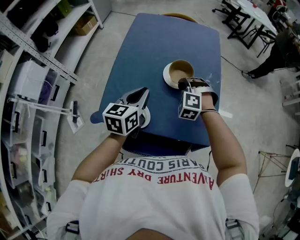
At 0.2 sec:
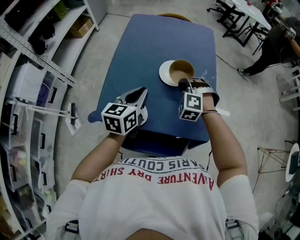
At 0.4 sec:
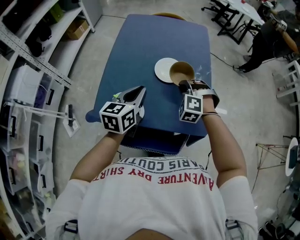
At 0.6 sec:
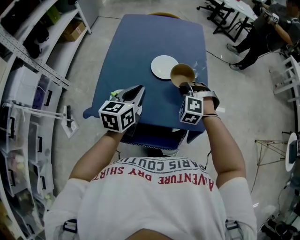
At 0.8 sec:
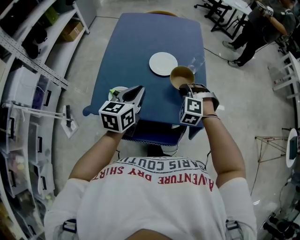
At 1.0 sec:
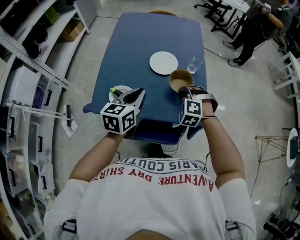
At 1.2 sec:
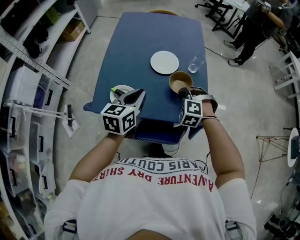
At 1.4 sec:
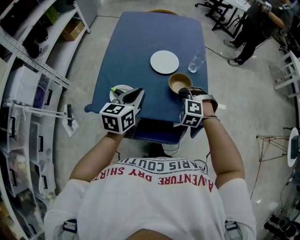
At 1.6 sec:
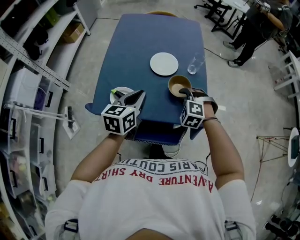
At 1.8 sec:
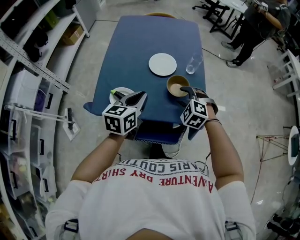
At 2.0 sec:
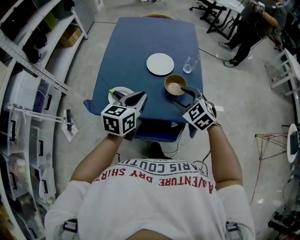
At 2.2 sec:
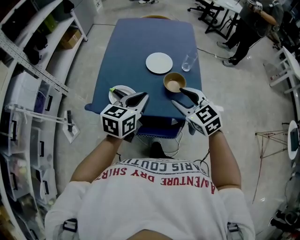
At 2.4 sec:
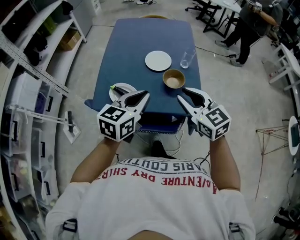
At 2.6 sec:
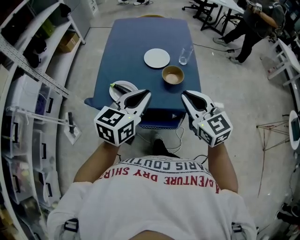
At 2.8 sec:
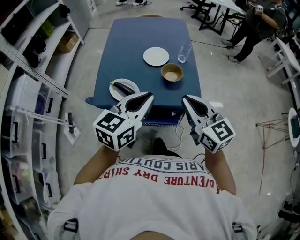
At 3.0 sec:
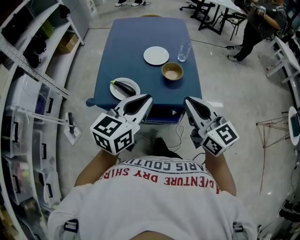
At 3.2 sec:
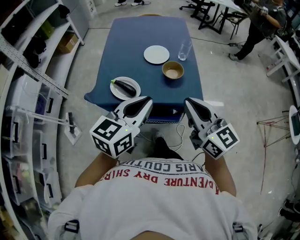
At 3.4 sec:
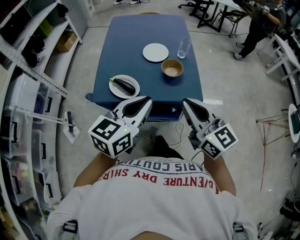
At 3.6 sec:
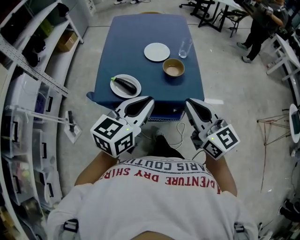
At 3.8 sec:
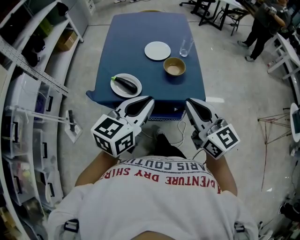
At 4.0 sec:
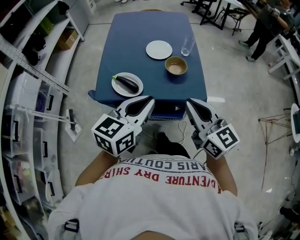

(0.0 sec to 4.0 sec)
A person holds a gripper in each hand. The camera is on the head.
0.0 sec - 1.4 sec: The right gripper moves backward and to the right, some 15 cm. The left gripper travels backward by roughly 5 cm.
1.4 sec - 2.6 sec: The left gripper moves backward and upward, some 15 cm; the right gripper goes roughly 25 cm upward and backward, angles its fingers upward, by roughly 40 degrees, and opens, then closes again.
2.6 sec - 4.0 sec: The grippers both shift backward by some 5 cm.

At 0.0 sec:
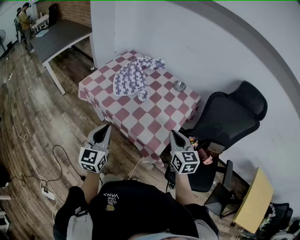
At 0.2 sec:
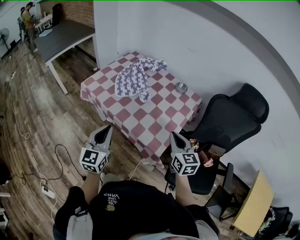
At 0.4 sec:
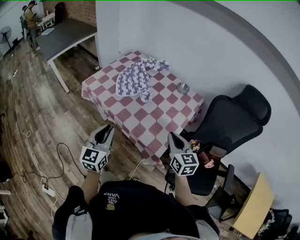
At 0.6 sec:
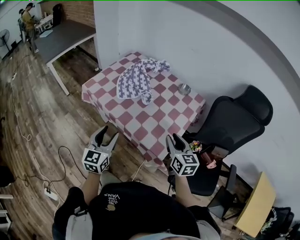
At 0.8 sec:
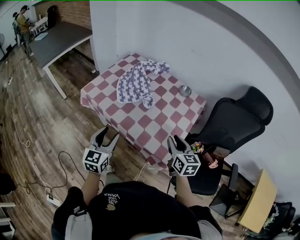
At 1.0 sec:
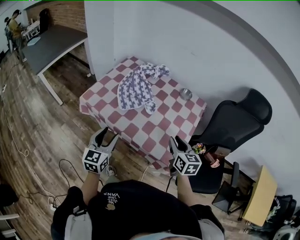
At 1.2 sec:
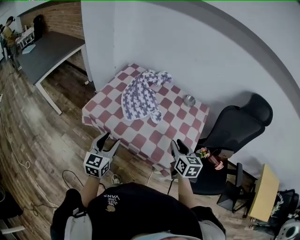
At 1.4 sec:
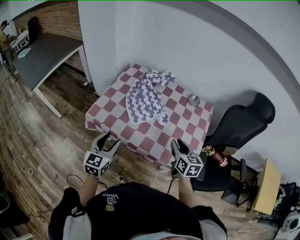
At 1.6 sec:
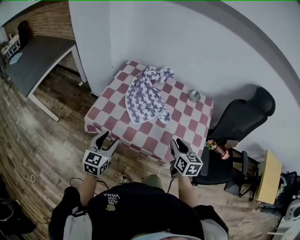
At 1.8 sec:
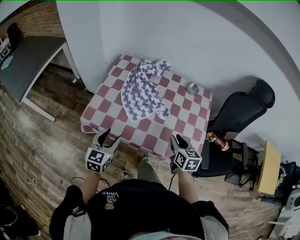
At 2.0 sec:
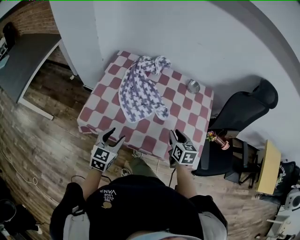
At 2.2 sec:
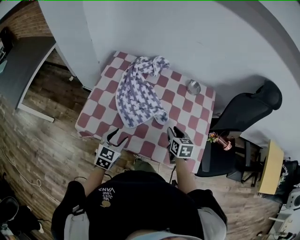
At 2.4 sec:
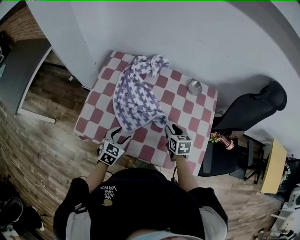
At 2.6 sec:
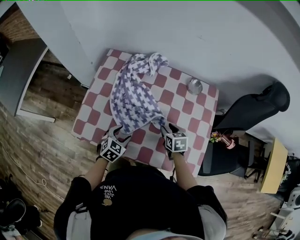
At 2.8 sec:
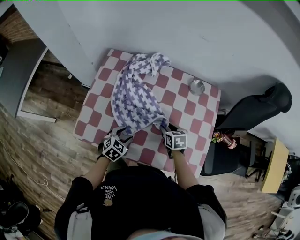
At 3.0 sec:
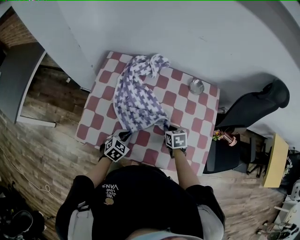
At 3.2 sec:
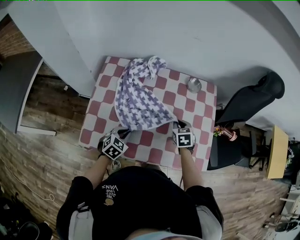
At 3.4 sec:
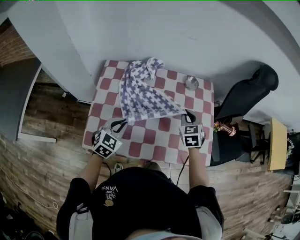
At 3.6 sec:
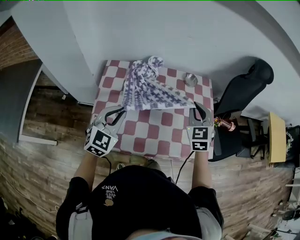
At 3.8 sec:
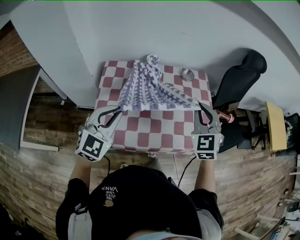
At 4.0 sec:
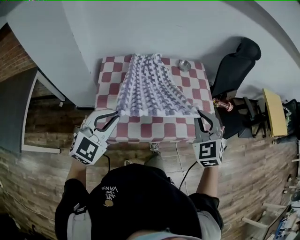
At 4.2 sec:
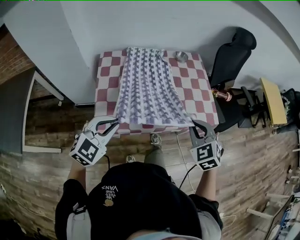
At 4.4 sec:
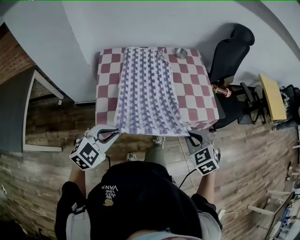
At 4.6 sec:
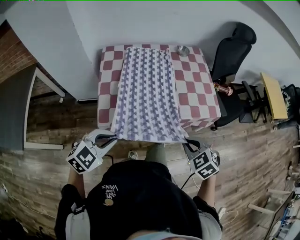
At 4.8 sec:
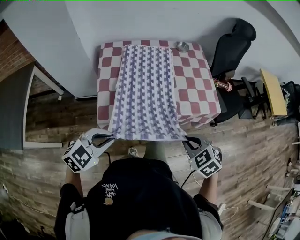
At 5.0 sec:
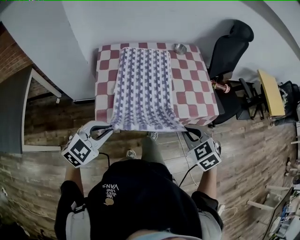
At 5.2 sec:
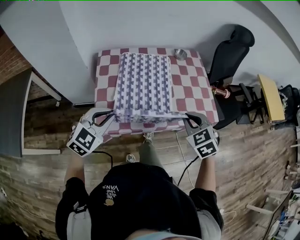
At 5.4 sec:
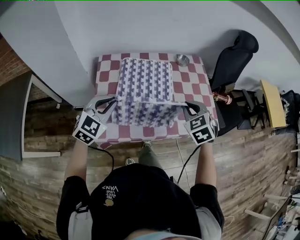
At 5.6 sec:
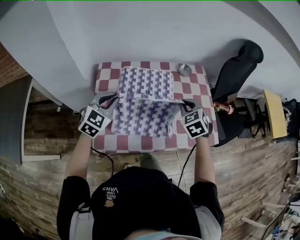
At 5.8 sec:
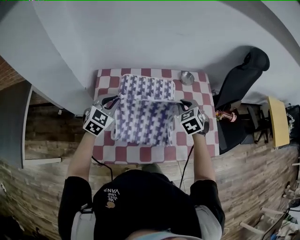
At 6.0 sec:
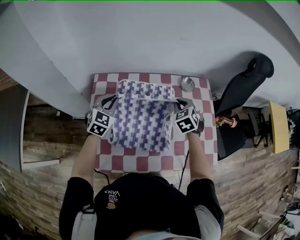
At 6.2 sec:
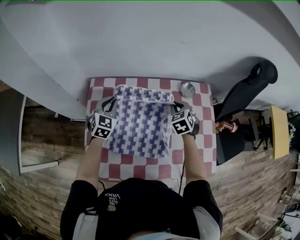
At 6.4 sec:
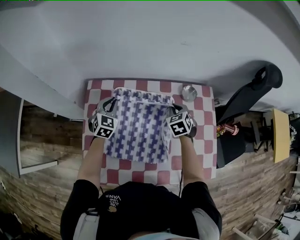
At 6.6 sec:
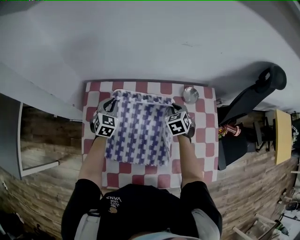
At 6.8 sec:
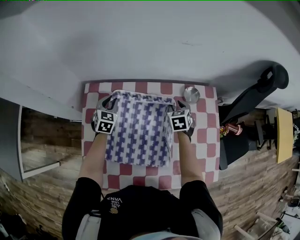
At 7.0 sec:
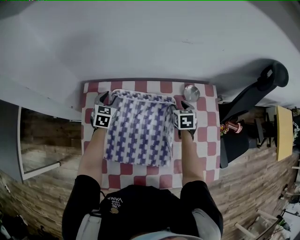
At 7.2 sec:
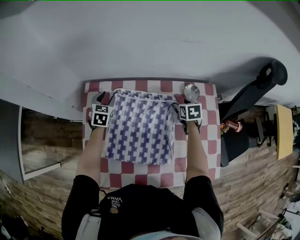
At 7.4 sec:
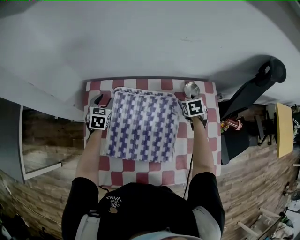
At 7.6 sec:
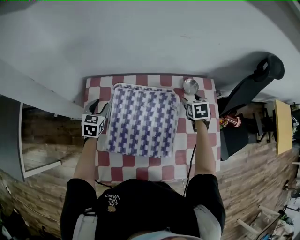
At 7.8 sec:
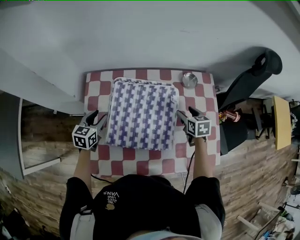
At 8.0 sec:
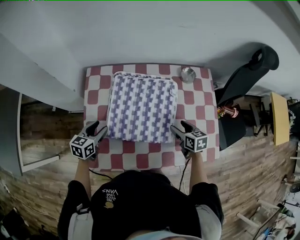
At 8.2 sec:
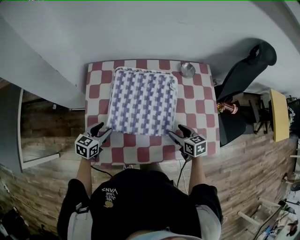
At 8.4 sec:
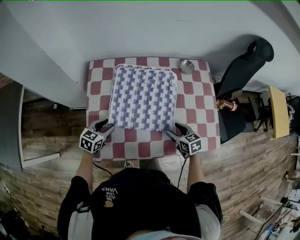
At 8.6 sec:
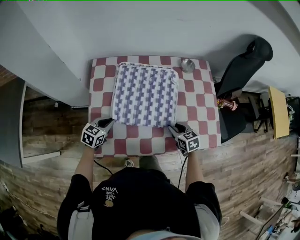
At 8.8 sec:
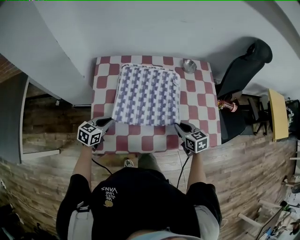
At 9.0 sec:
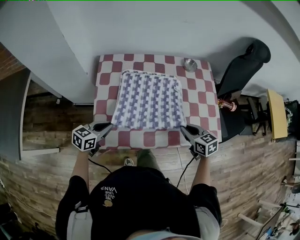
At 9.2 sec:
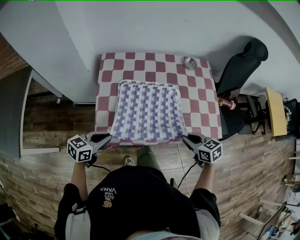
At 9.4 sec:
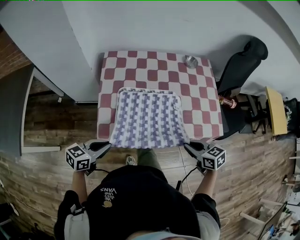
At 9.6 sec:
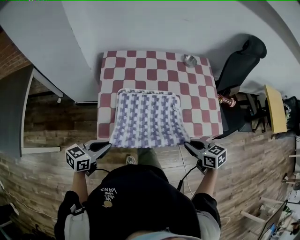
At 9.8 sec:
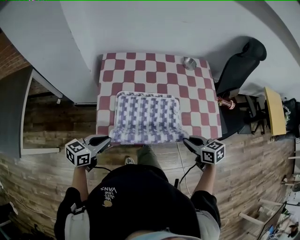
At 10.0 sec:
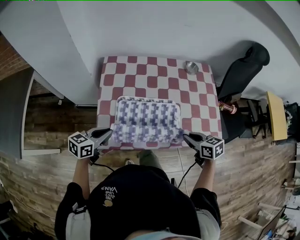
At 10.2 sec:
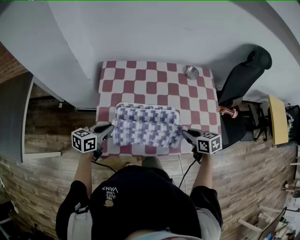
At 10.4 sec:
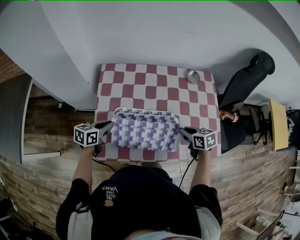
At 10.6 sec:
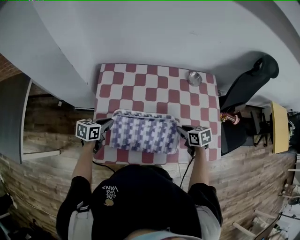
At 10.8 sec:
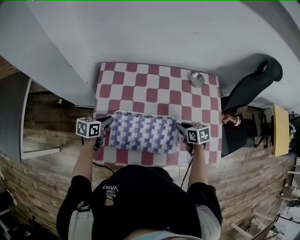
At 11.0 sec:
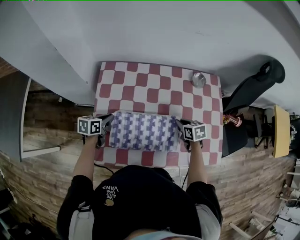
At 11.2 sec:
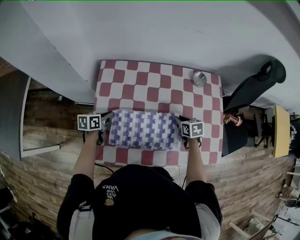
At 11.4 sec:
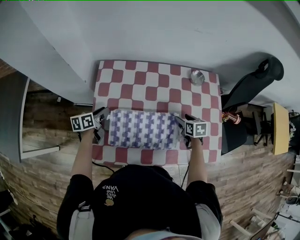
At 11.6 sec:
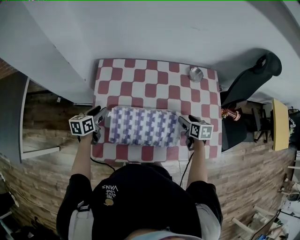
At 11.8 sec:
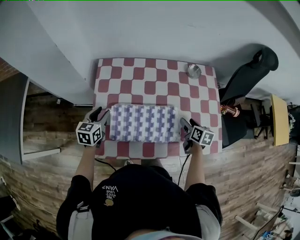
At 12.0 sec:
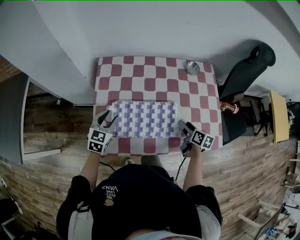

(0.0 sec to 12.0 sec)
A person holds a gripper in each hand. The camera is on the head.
0.0 sec - 1.6 sec: The right gripper moves to the left and forward, roughly 20 cm, swivels about 30 degrees, and opens. Meanwhile the left gripper shifts roughly 25 cm forward and to the left, rotates approximately 30 degrees, and opens its fingers.
1.6 sec - 3.0 sec: The left gripper is displaced downward, forward and to the right by roughly 25 cm, points its fingers approximately 30 degrees further downward, and closes up. The right gripper moves downward and forward, about 25 cm, and rotates some 30 degrees.
3.0 sec - 4.4 sec: The right gripper changes place by roughly 40 cm, and changes its angle by some 30 degrees, while the left gripper moves about 30 cm, and turns by approximately 40 degrees.
4.4 sec - 6.0 sec: Both grippers are carried forward, roughly 40 cm. The left gripper rotates roughly 30 degrees.
6.0 sec - 7.6 sec: The right gripper goes some 15 cm forward, to the right and downward, changes its angle by roughly 30 degrees, and opens its fingers; the left gripper heads downward and to the left, covering roughly 10 cm, travels forward and back again, roughly 15 cm each way, swivels roughly 30 degrees, and opens up.
7.6 sec - 9.0 sec: Both grippers move backward, about 30 cm. The left gripper turns by approximately 30 degrees, and closes up. The right gripper changes its angle by some 30 degrees, and closes its fingers.
9.0 sec - 10.4 sec: Both grippers move forward, roughly 5 cm.
10.4 sec - 12.0 sec: The right gripper moves about 10 cm forward and comes back, changes its angle by approximately 40 degrees, and opens up, while the left gripper moves about 10 cm forward and comes back, rotates about 30 degrees, and opens up.

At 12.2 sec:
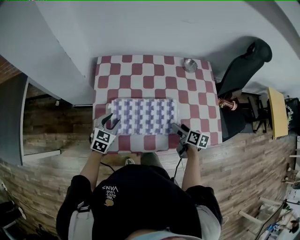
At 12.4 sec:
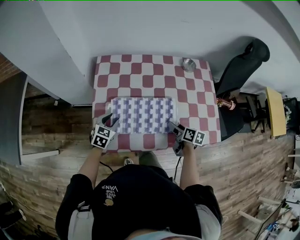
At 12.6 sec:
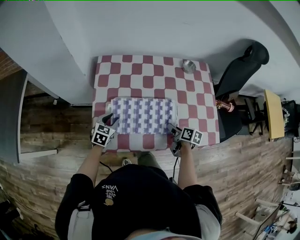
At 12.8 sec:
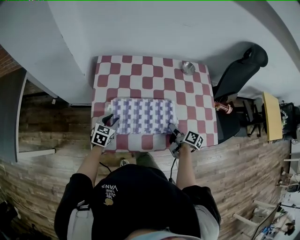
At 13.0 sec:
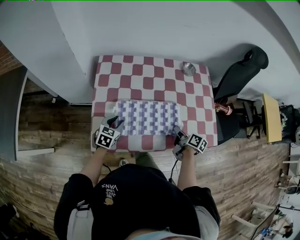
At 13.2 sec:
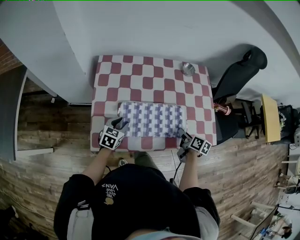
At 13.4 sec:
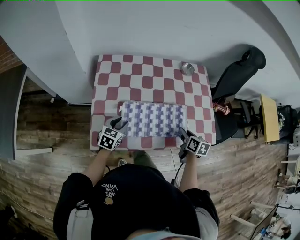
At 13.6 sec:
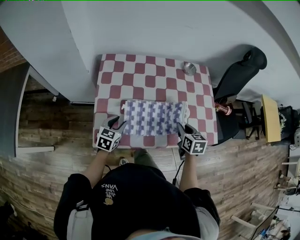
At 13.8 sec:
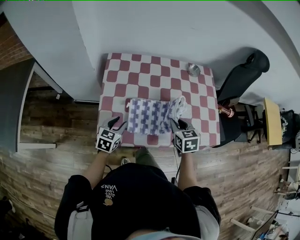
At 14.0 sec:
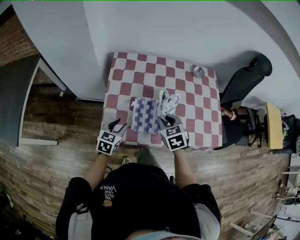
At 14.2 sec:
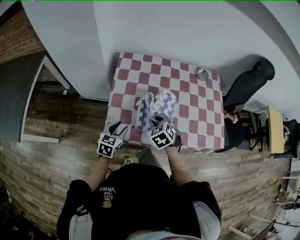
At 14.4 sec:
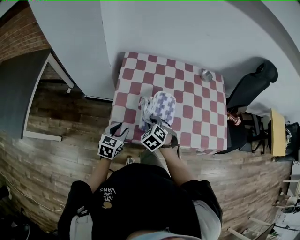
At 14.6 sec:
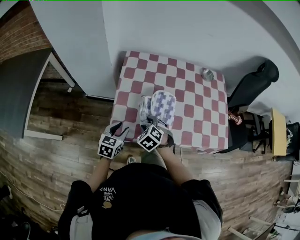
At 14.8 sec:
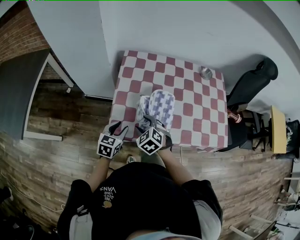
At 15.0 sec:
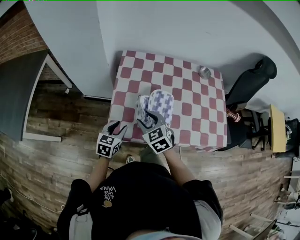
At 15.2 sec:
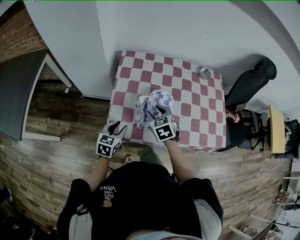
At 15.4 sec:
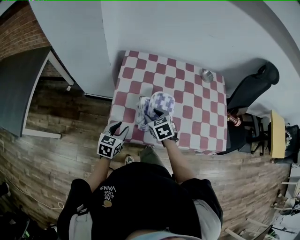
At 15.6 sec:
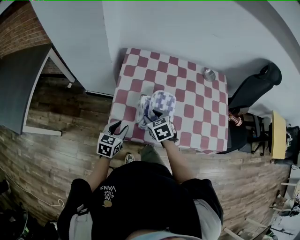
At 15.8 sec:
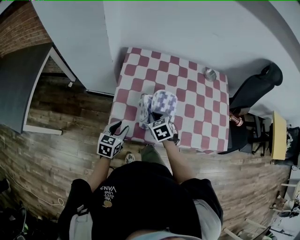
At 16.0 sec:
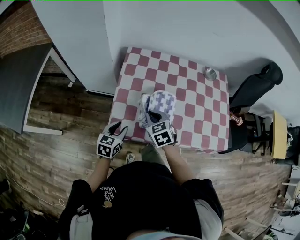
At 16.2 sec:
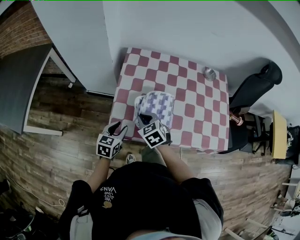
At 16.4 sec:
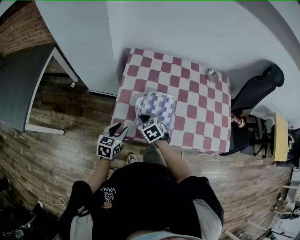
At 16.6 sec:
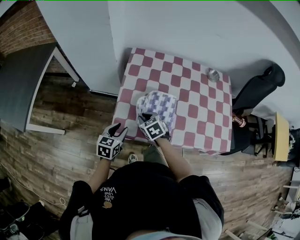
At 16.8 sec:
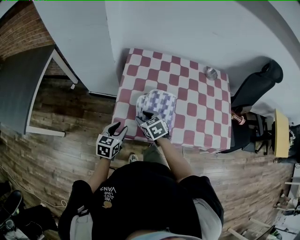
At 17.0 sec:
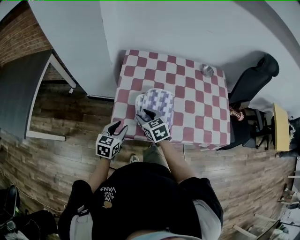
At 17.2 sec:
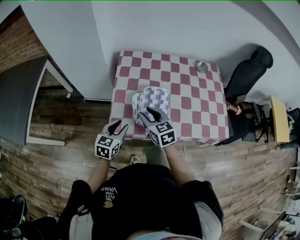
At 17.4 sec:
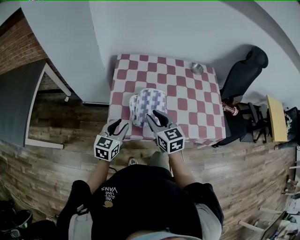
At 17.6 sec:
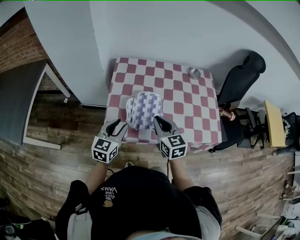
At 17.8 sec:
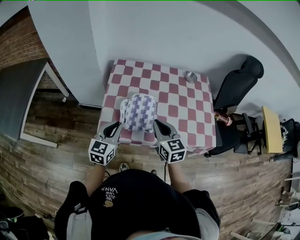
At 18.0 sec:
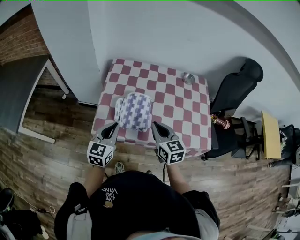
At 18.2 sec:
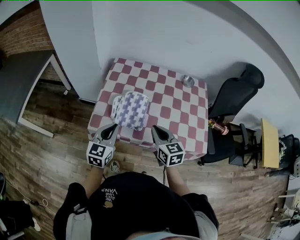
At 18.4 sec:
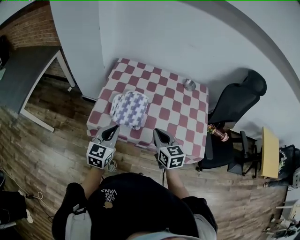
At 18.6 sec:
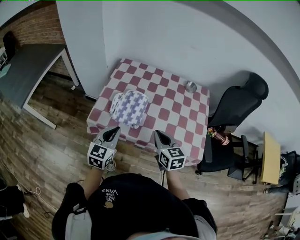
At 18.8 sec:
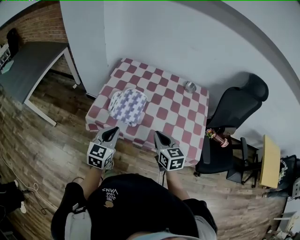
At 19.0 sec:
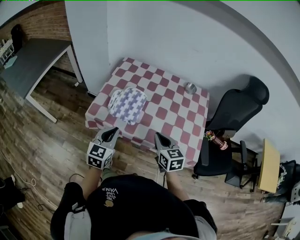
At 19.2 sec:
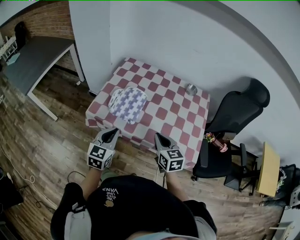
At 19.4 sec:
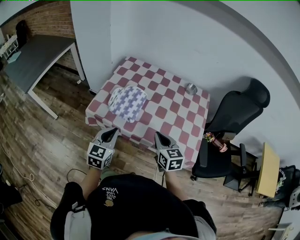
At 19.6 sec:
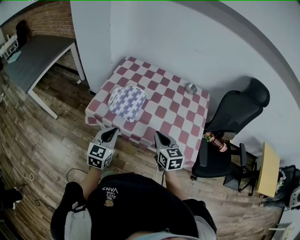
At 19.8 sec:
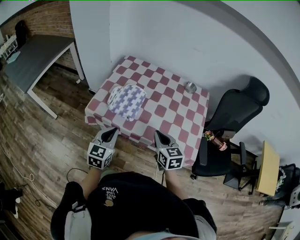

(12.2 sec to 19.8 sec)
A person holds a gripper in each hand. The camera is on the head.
12.2 sec - 13.8 sec: The right gripper travels upward and to the left by roughly 15 cm, rolls counterclockwise, seen from behind, by roughly 40 degrees, and closes its fingers. Meanwhile the left gripper shifts about 5 cm backward.
13.8 sec - 15.2 sec: The right gripper shifts some 15 cm to the left, rotates roughly 20 degrees, and opens. The left gripper travels backward and to the left by some 5 cm.
15.2 sec - 16.8 sec: The right gripper goes approximately 10 cm to the left and downward, and closes and opens again.
16.8 sec - 18.2 sec: The right gripper shifts about 25 cm to the right, upward and backward, rotates roughly 30 degrees, and closes. The left gripper goes about 20 cm upward and to the right, swivels roughly 20 degrees, and closes its fingers.
18.2 sec - 19.8 sec: The right gripper travels to the right and backward by roughly 10 cm. The left gripper moves backward and to the right, roughly 10 cm.
